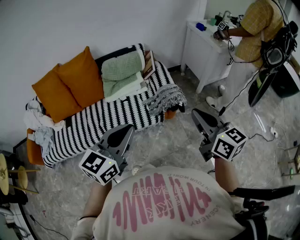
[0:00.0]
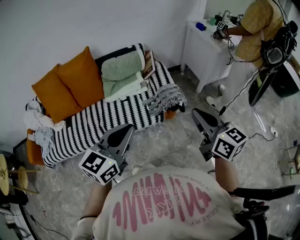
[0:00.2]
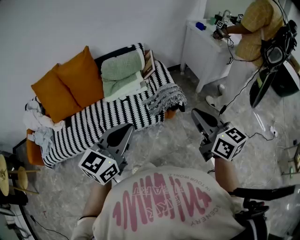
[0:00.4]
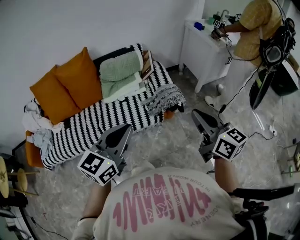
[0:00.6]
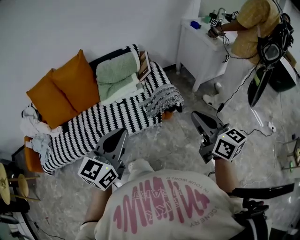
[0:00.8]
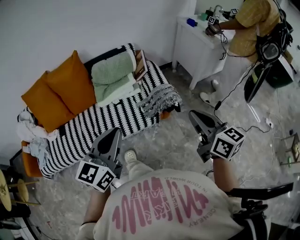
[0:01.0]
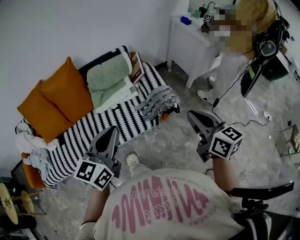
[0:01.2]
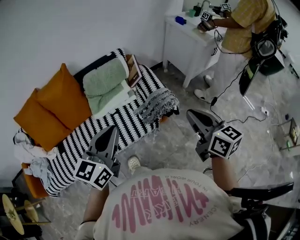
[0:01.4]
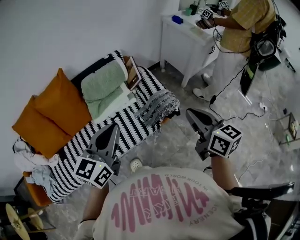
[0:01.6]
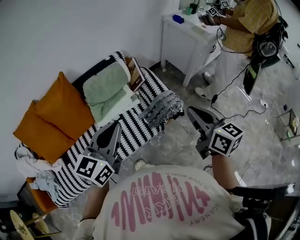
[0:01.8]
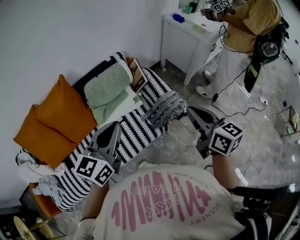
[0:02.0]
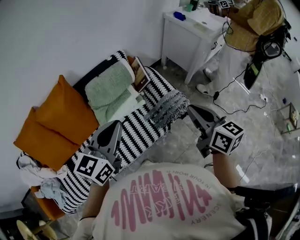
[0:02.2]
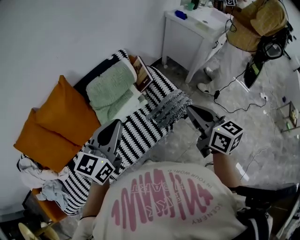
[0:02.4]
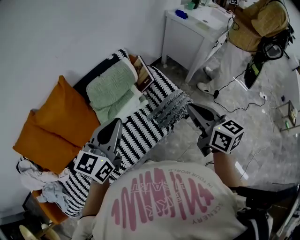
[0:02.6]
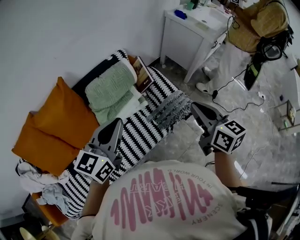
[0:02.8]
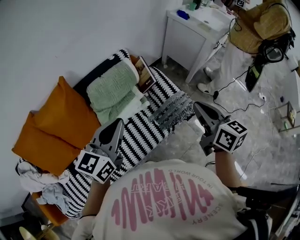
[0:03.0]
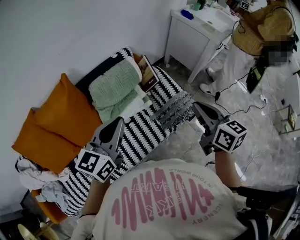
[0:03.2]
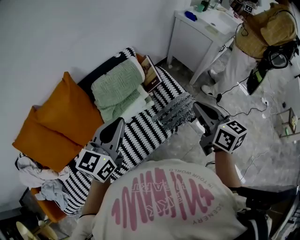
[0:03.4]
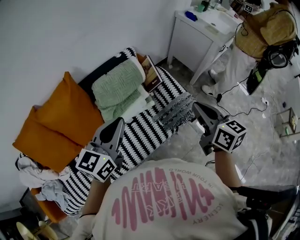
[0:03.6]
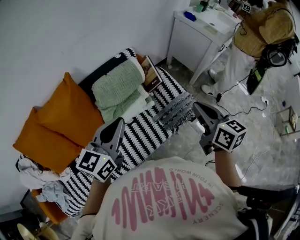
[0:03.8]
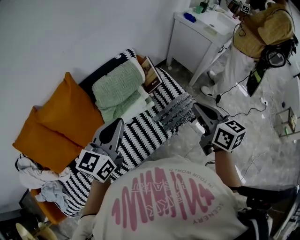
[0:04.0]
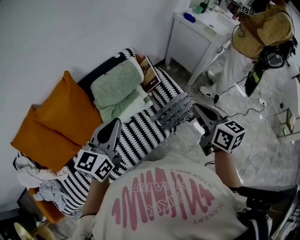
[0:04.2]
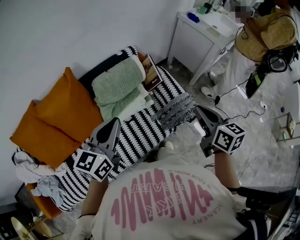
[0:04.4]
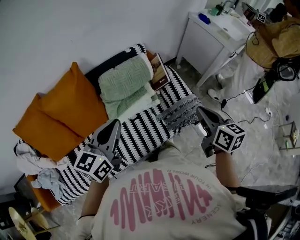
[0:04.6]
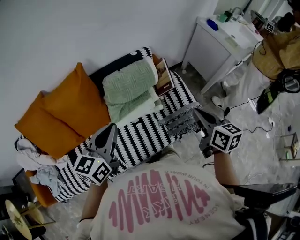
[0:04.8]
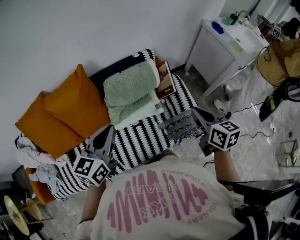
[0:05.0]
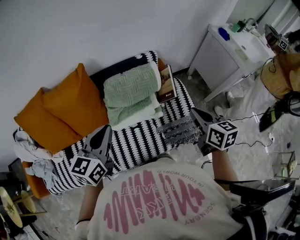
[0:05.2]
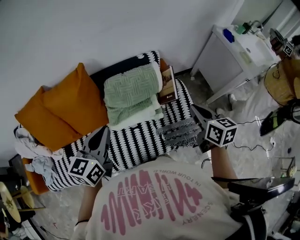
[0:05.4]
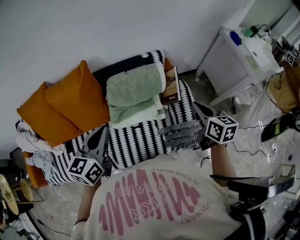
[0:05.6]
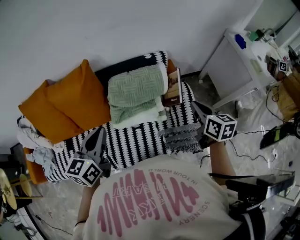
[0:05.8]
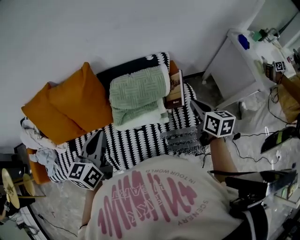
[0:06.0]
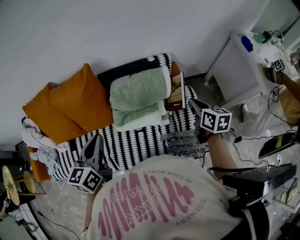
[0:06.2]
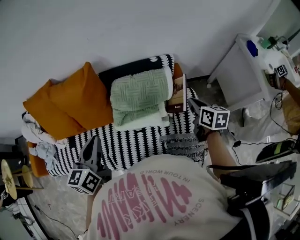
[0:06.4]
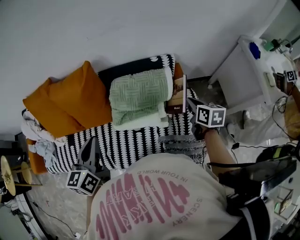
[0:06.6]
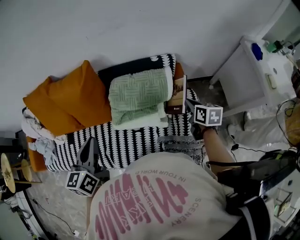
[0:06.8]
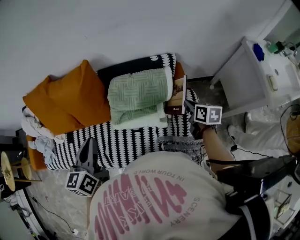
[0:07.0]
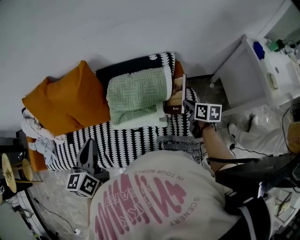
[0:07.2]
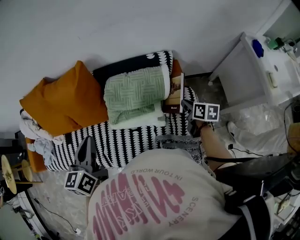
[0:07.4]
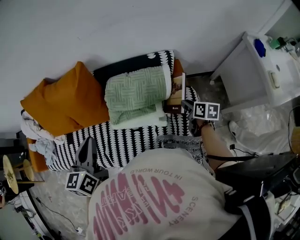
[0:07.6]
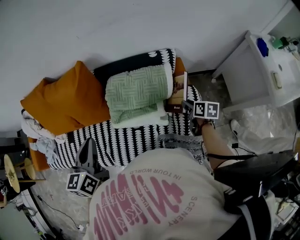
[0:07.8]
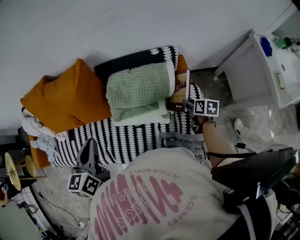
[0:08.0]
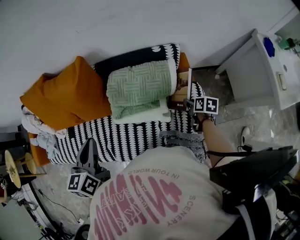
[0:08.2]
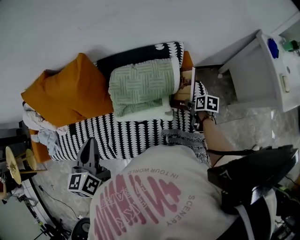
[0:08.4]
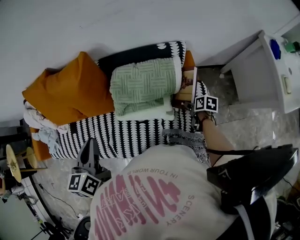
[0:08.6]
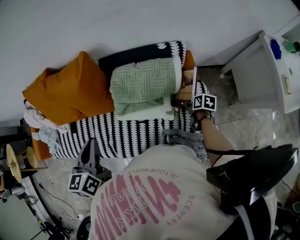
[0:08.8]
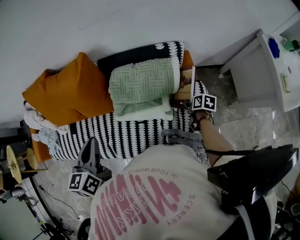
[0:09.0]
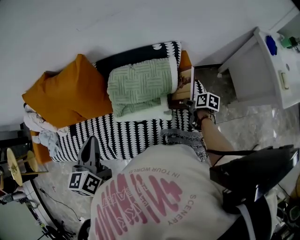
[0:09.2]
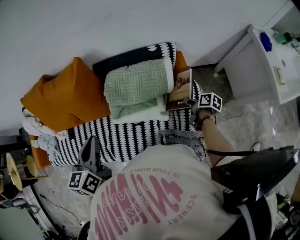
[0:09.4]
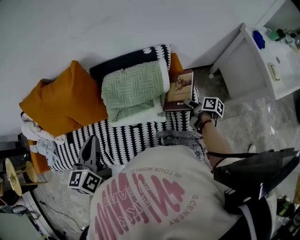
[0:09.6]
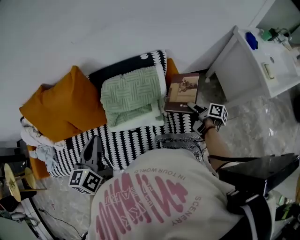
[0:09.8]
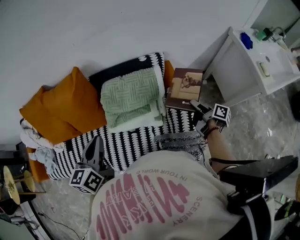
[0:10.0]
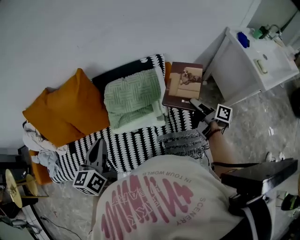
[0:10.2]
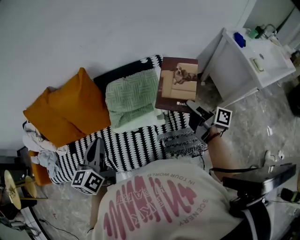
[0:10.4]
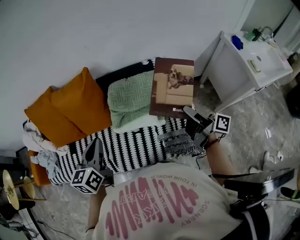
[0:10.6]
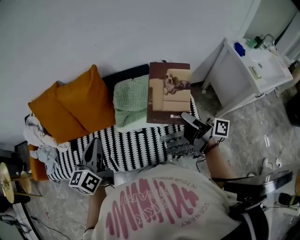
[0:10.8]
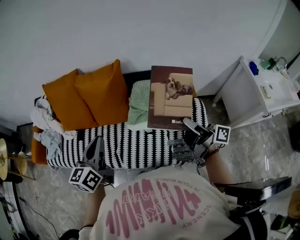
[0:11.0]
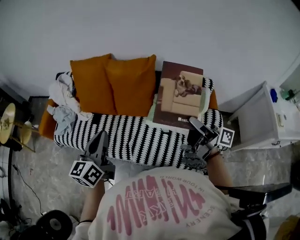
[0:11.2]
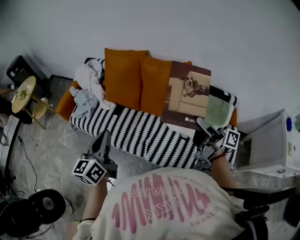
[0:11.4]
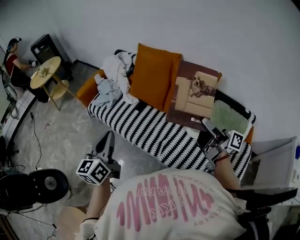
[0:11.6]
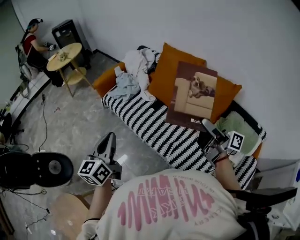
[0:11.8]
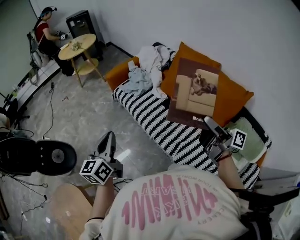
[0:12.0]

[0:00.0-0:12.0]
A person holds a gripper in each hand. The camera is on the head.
0:00.0 to 0:01.6: The right gripper goes approximately 10 cm forward. The left gripper heads forward and to the left, covering about 15 cm.
0:01.6 to 0:03.0: The right gripper shifts about 10 cm to the left and forward. Meanwhile the left gripper is displaced forward and to the left by roughly 15 cm.
0:03.0 to 0:04.4: The grippers stay close to where they were, moving slightly.
0:04.4 to 0:06.0: The right gripper moves about 25 cm, and turns by approximately 20 degrees. Meanwhile the left gripper changes place by approximately 5 cm, and rotates about 30 degrees.
0:06.0 to 0:07.6: The right gripper shifts approximately 15 cm downward and forward, and turns by about 20 degrees.
0:07.6 to 0:09.0: The right gripper heads downward, covering some 10 cm.
0:09.0 to 0:10.4: The right gripper is displaced upward by roughly 25 cm, and points its fingers roughly 60 degrees further upward.
0:10.4 to 0:12.0: The pair of grippers is taken roughly 50 cm. The left gripper changes its angle by roughly 60 degrees, while the right gripper turns by about 70 degrees.

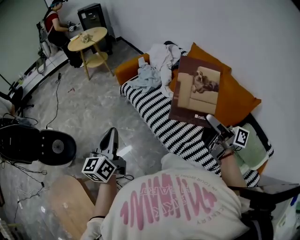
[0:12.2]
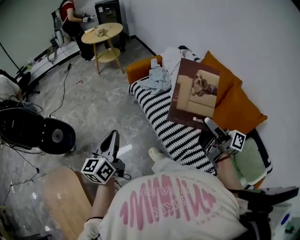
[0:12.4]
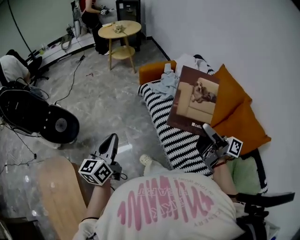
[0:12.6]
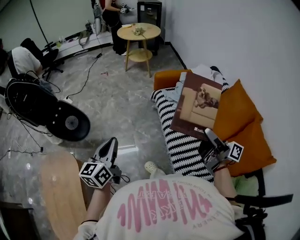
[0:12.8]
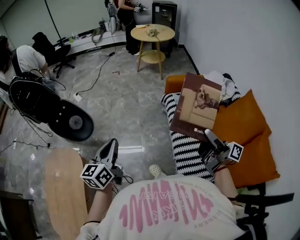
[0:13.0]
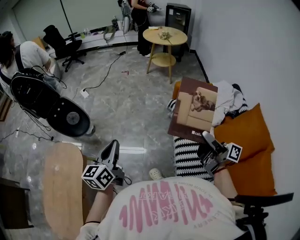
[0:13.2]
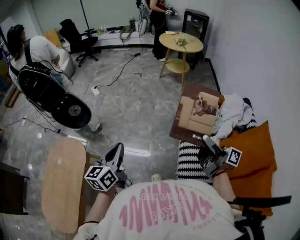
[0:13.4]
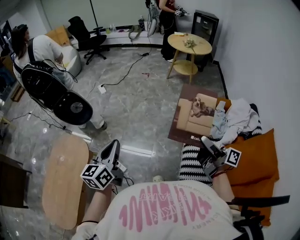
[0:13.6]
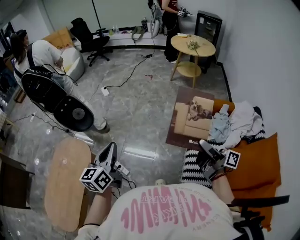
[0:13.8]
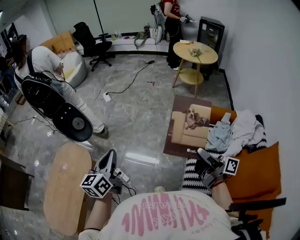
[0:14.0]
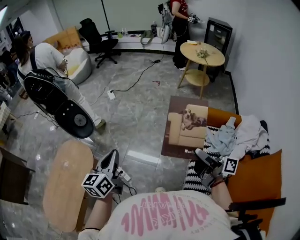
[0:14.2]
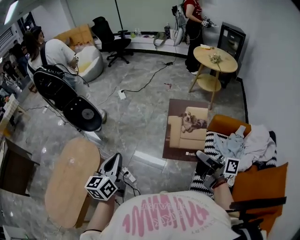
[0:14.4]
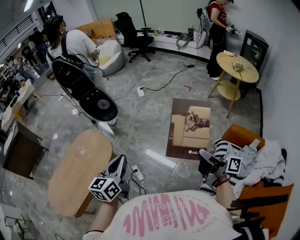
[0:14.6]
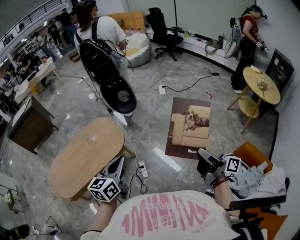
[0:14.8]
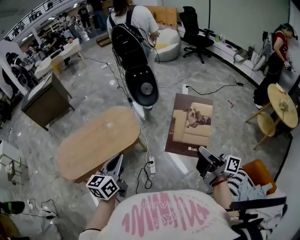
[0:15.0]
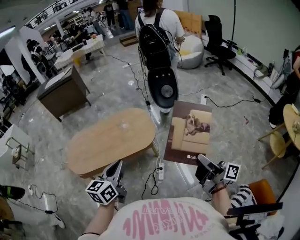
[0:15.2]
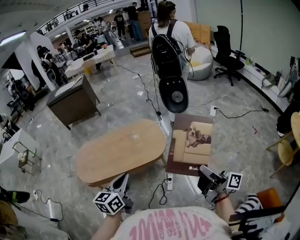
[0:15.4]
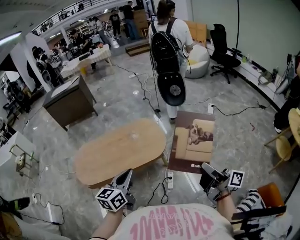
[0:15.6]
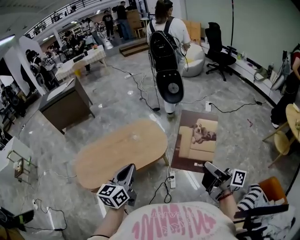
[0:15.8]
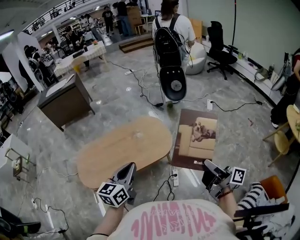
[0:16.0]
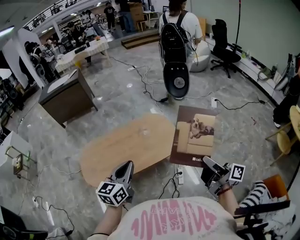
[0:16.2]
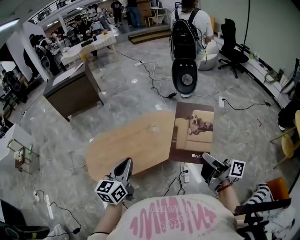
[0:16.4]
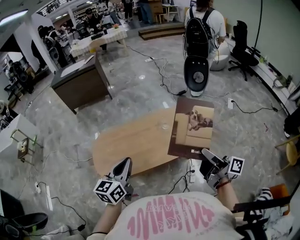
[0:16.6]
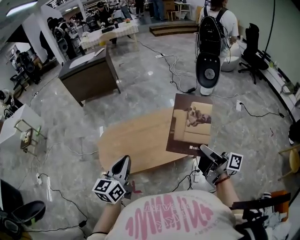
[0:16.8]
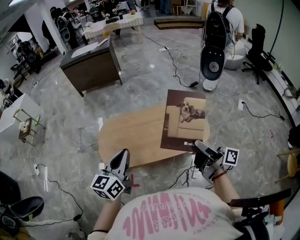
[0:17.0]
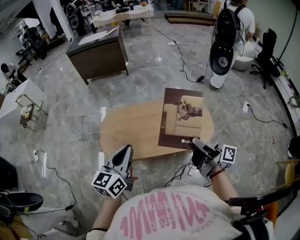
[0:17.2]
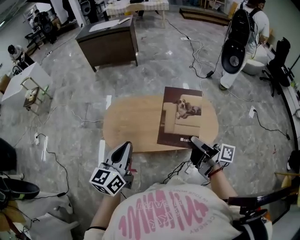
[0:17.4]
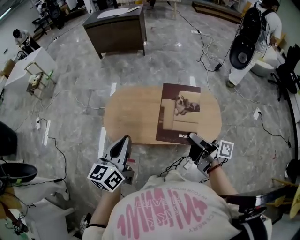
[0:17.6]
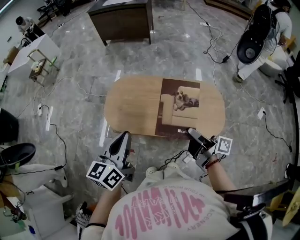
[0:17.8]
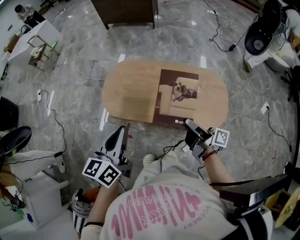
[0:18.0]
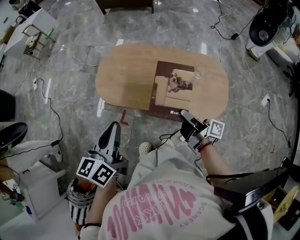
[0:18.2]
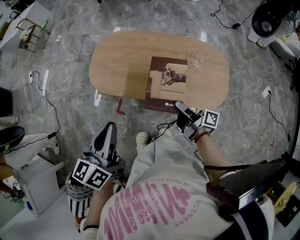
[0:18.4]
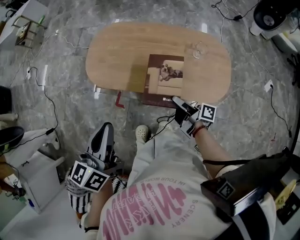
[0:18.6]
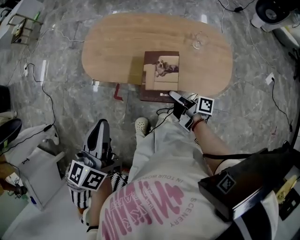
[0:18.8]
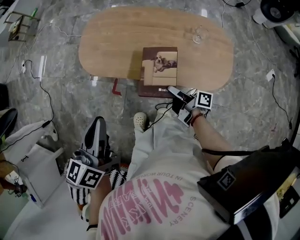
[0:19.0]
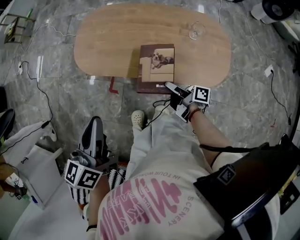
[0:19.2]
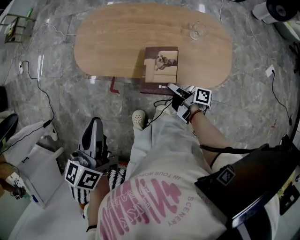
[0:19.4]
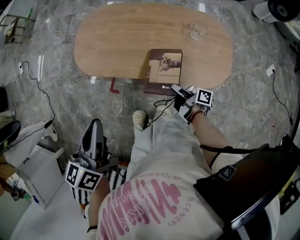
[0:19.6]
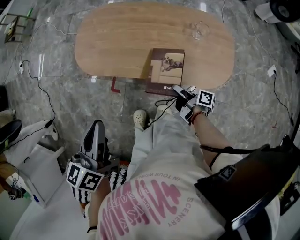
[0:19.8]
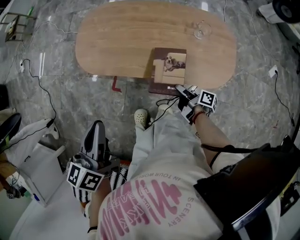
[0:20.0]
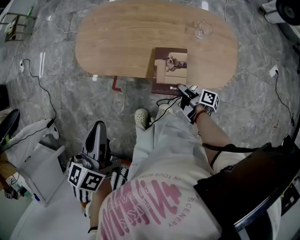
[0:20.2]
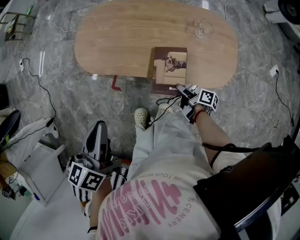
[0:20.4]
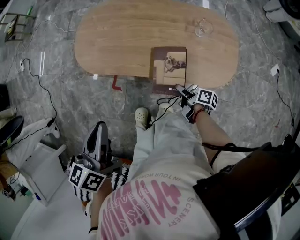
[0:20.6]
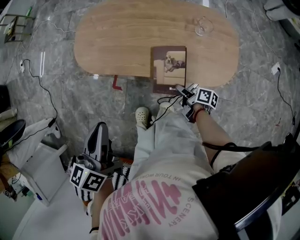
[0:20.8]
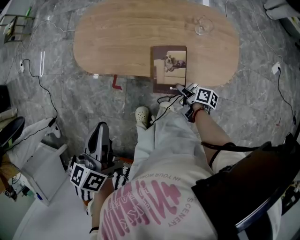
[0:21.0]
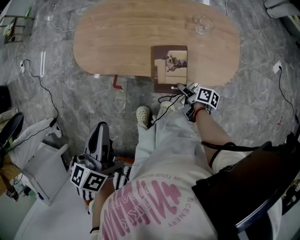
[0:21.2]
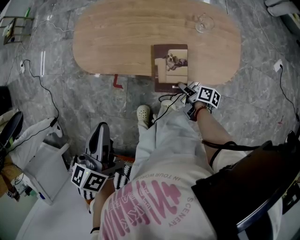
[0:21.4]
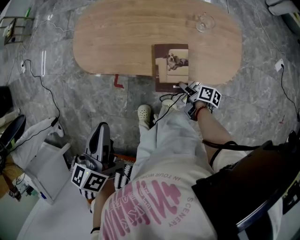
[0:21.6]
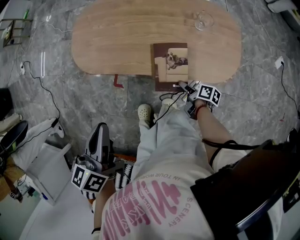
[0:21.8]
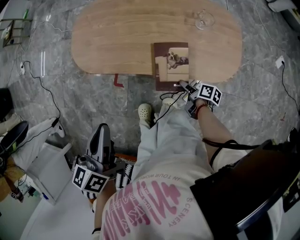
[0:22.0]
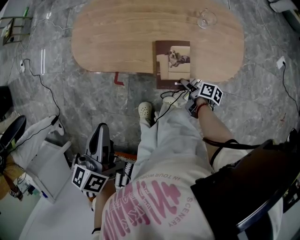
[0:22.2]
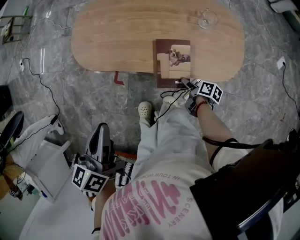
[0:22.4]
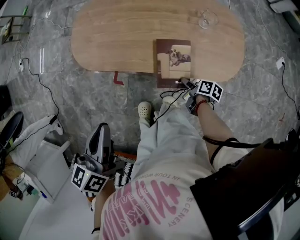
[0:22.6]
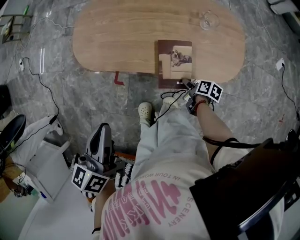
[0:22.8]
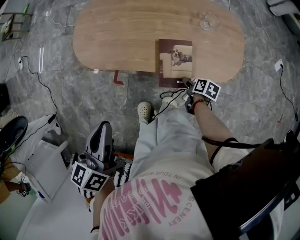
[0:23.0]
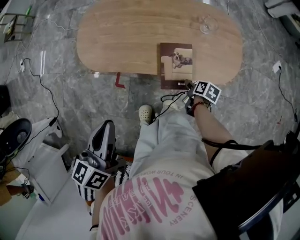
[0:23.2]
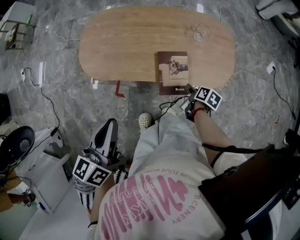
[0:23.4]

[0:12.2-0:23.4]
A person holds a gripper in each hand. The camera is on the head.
0:12.2 to 0:13.8: The right gripper moves some 35 cm, and swivels some 50 degrees. The left gripper shifts by some 20 cm, and changes its angle by some 40 degrees.
0:13.8 to 0:15.4: The left gripper shifts by approximately 25 cm, and changes its angle by approximately 50 degrees; the right gripper ends up approximately 35 cm from where it was, and rotates roughly 60 degrees.
0:15.4 to 0:17.0: The left gripper heads to the left, covering about 30 cm, while the right gripper heads to the left and forward, covering about 35 cm.
0:17.0 to 0:18.6: The right gripper is displaced downward by approximately 25 cm, and turns by some 40 degrees. Meanwhile the left gripper heads backward, covering some 10 cm, and rotates approximately 30 degrees.
0:18.6 to 0:20.2: The right gripper goes some 10 cm downward, and rotates some 20 degrees.
0:20.2 to 0:21.8: The right gripper moves roughly 5 cm.
0:21.8 to 0:23.4: The right gripper moves about 5 cm, and swivels some 30 degrees.
